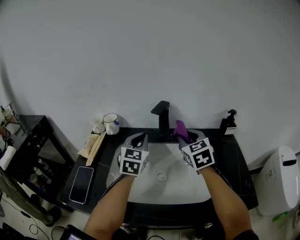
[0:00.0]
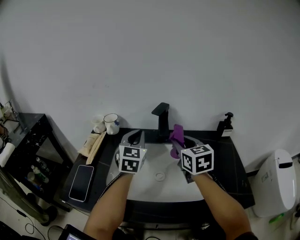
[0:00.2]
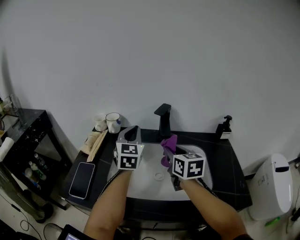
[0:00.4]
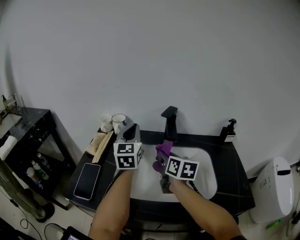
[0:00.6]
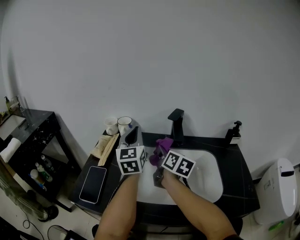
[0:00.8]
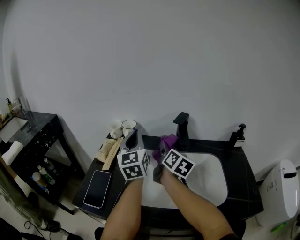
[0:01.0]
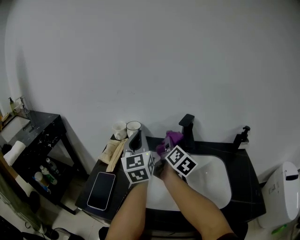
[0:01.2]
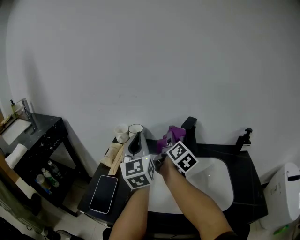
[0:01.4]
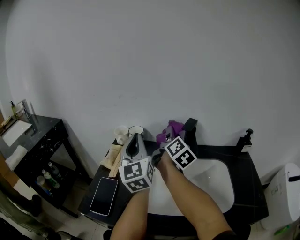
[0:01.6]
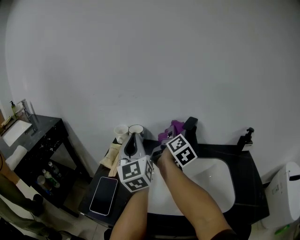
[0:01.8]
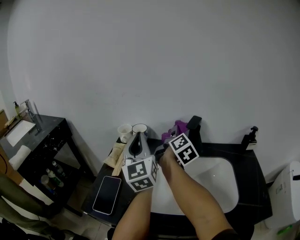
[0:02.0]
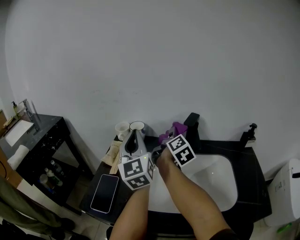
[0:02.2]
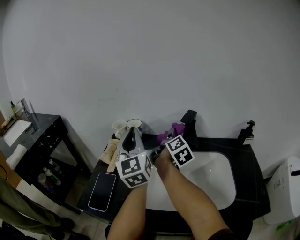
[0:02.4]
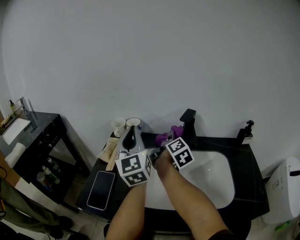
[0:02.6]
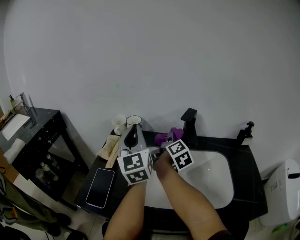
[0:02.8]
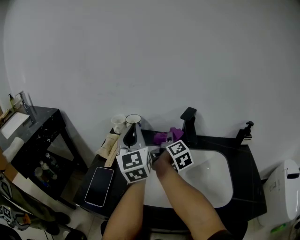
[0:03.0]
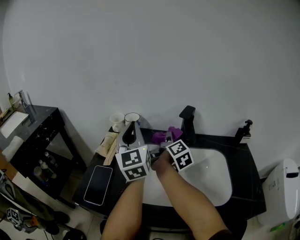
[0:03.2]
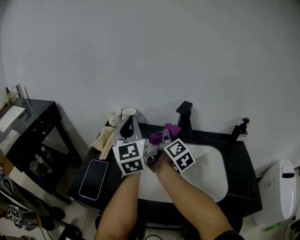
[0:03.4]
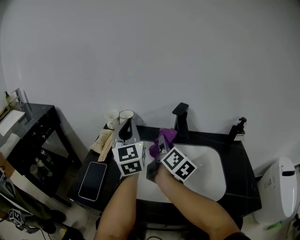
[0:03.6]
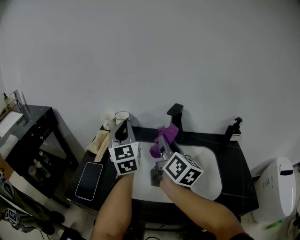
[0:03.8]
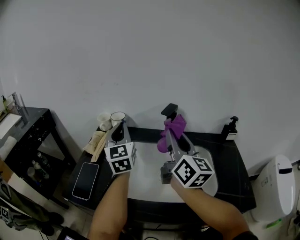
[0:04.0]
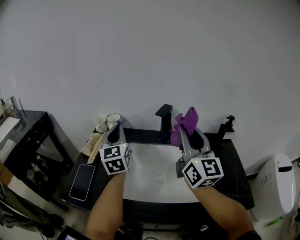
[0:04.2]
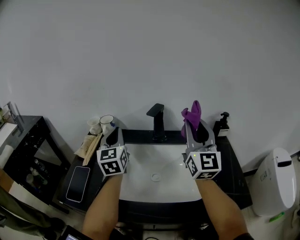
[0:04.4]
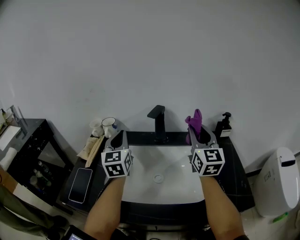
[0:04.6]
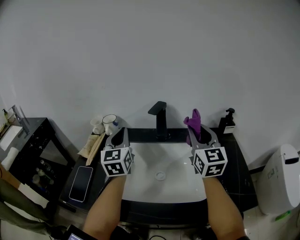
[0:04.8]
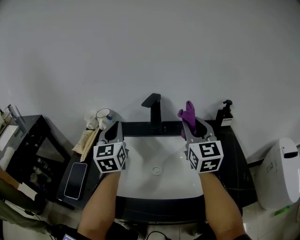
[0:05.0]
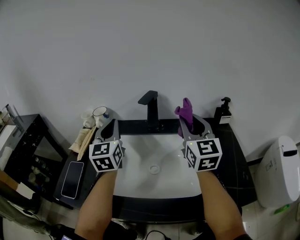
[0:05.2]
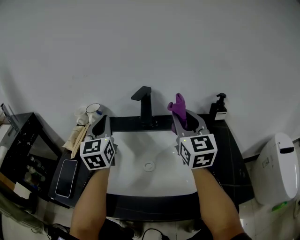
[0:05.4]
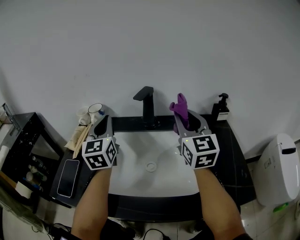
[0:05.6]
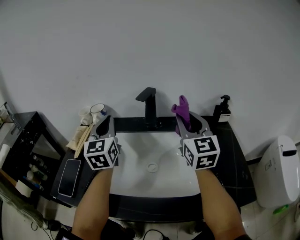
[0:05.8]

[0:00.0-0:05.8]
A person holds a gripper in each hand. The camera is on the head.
0:00.0 to 0:01.4: The left gripper shifts about 20 cm to the left and upward, and turns by approximately 40 degrees; the right gripper shifts roughly 15 cm to the left and forward, and rotates around the line of its fingers by about 70 degrees, clockwise from behind.
0:01.4 to 0:02.8: The right gripper is displaced downward by roughly 5 cm.
0:02.8 to 0:04.4: The left gripper moves to the right, some 5 cm. The right gripper shifts about 25 cm upward, backward and to the right, and twists roughly 70 degrees counterclockwise, seen from behind.
0:04.4 to 0:05.8: The right gripper travels downward by about 5 cm.

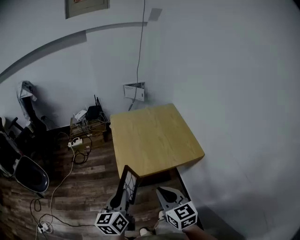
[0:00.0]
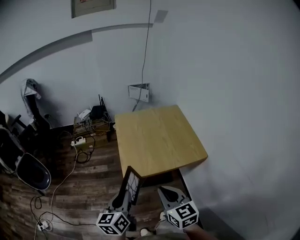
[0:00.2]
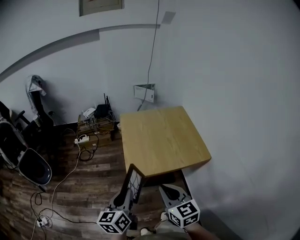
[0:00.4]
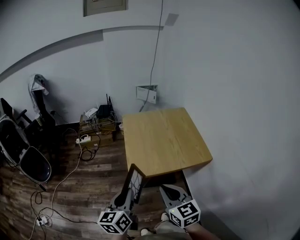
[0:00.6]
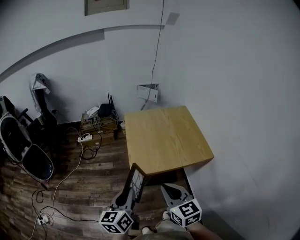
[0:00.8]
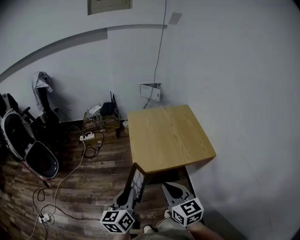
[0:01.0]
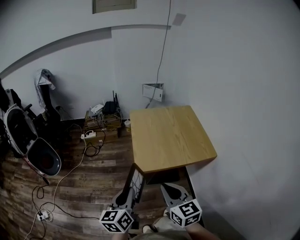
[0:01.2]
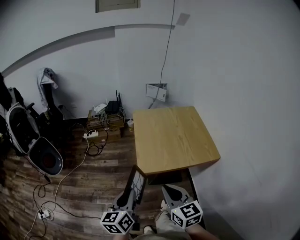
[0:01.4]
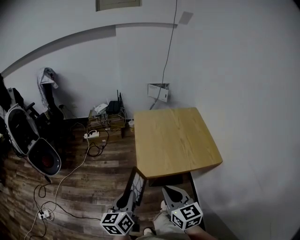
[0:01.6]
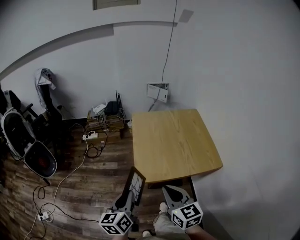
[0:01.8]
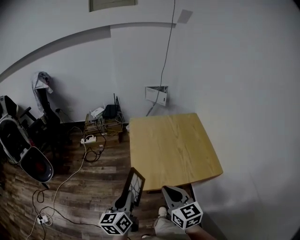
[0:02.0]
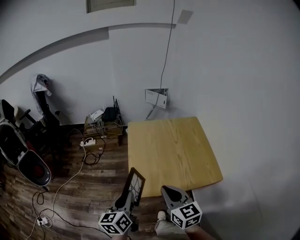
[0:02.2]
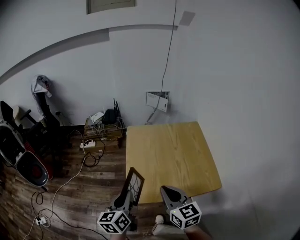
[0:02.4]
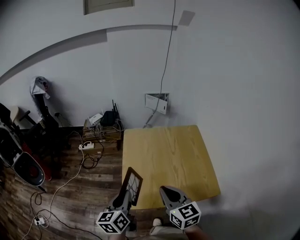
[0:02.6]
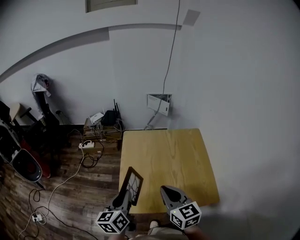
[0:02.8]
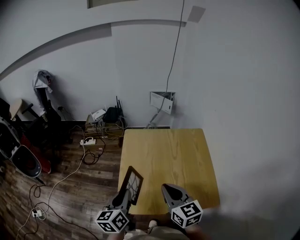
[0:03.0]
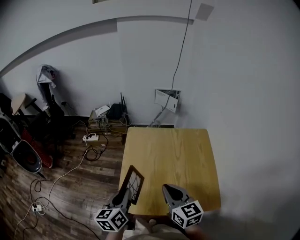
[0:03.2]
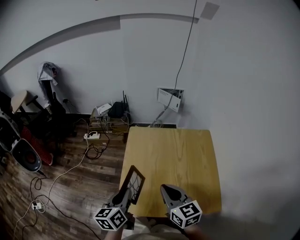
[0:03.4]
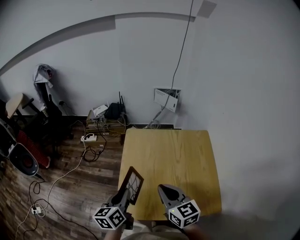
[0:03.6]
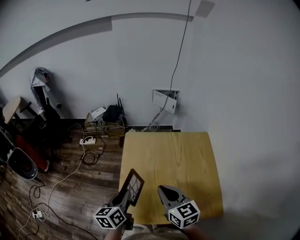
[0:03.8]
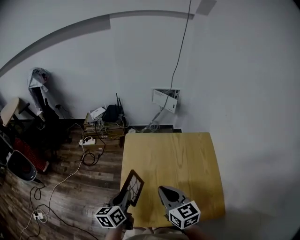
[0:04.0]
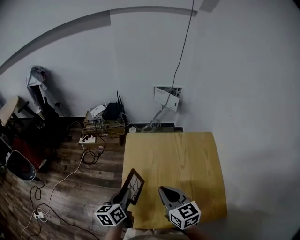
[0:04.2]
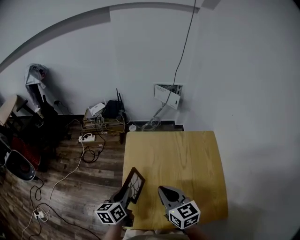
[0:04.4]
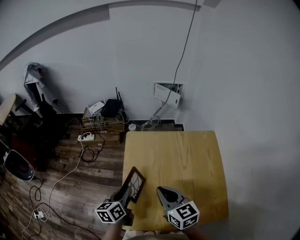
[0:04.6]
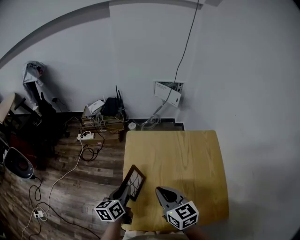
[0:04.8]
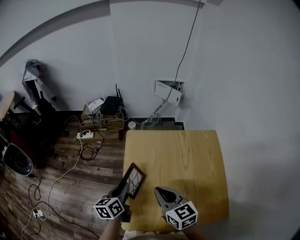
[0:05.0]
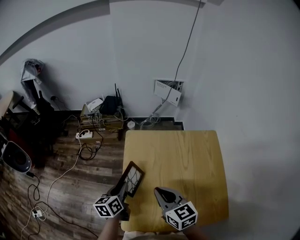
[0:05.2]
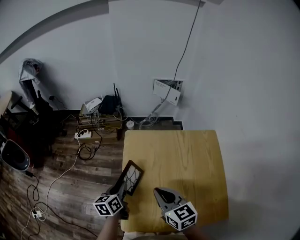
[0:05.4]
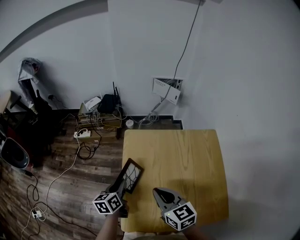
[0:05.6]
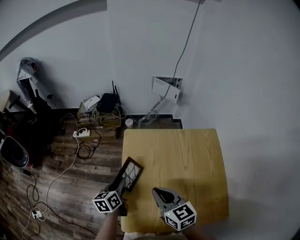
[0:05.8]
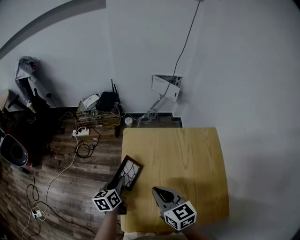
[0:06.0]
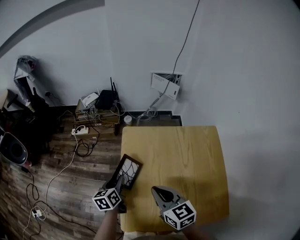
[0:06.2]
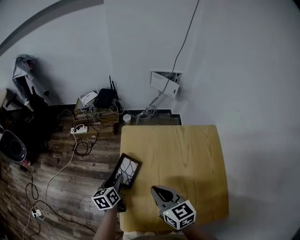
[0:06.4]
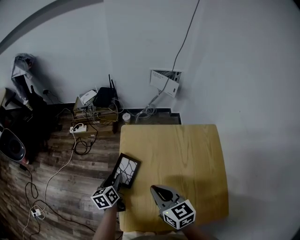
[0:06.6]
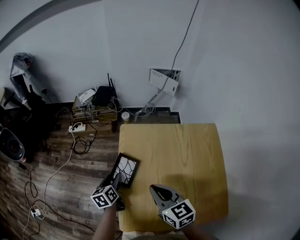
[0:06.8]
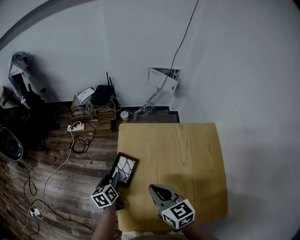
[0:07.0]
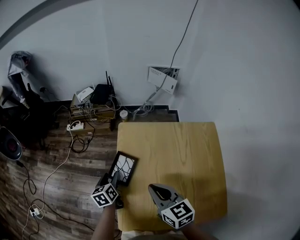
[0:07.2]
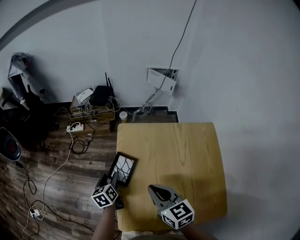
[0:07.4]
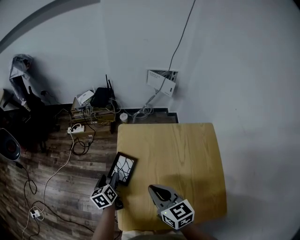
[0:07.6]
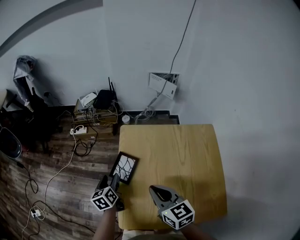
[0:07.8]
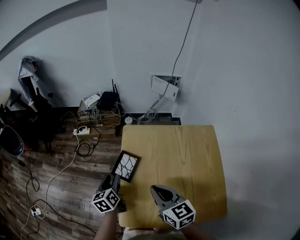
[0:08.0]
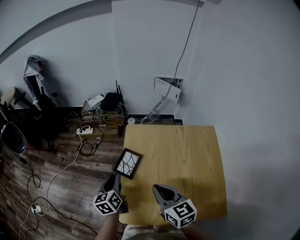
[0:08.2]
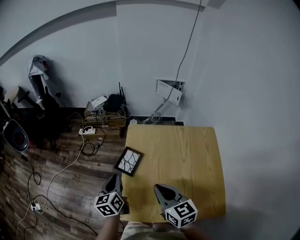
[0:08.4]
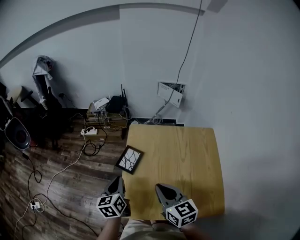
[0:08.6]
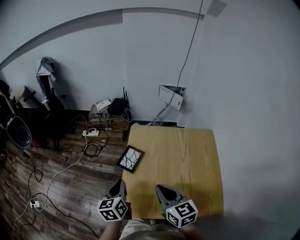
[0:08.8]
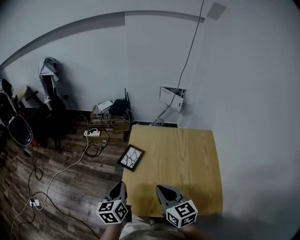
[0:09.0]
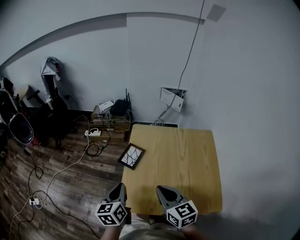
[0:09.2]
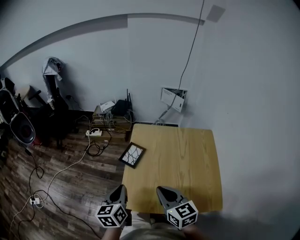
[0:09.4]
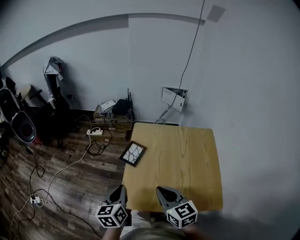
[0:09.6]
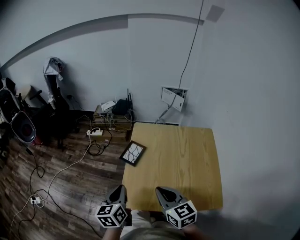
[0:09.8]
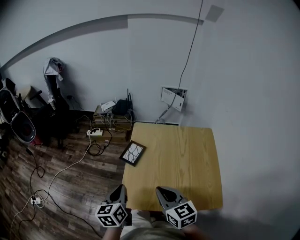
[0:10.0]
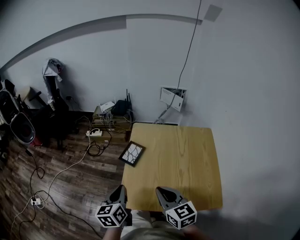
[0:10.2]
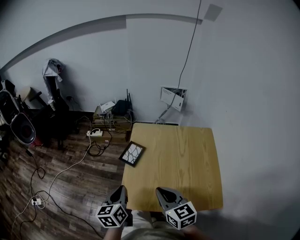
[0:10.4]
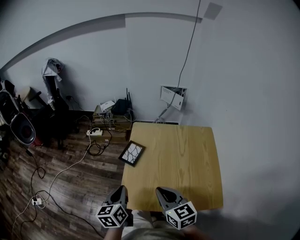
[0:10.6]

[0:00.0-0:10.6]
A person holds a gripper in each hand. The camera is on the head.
0:00.0 to 0:01.6: The grippers both shift to the left by about 10 cm.
0:01.6 to 0:03.0: The grippers both shift forward and to the right by approximately 30 cm.
0:03.0 to 0:04.6: Both grippers move forward and downward, approximately 15 cm.
0:04.6 to 0:06.0: The left gripper goes approximately 10 cm forward and downward.
0:06.0 to 0:07.6: The left gripper ends up about 5 cm from where it was, and opens.
0:07.6 to 0:09.0: The left gripper moves backward and upward, about 25 cm, and closes up, while the right gripper moves backward, some 10 cm.
0:09.0 to 0:10.6: The left gripper shifts some 5 cm backward.

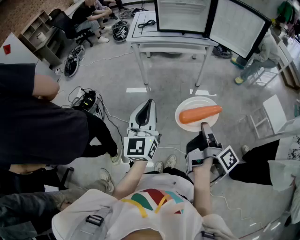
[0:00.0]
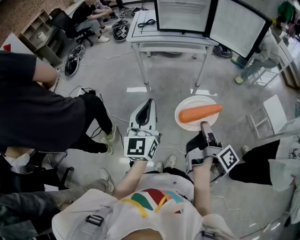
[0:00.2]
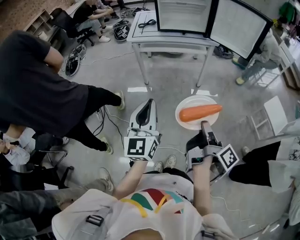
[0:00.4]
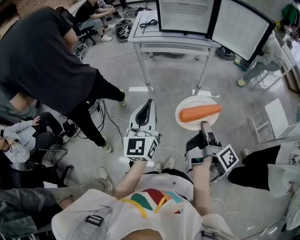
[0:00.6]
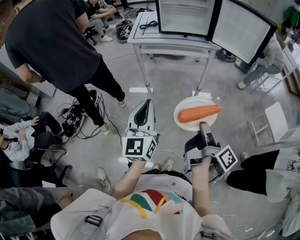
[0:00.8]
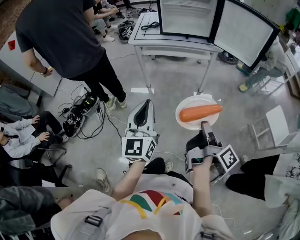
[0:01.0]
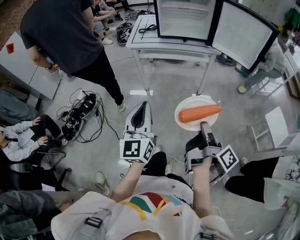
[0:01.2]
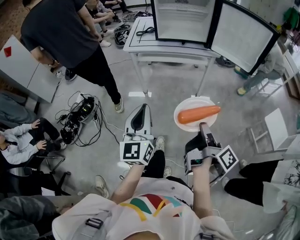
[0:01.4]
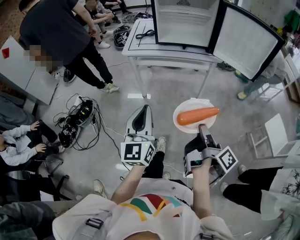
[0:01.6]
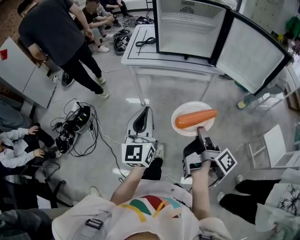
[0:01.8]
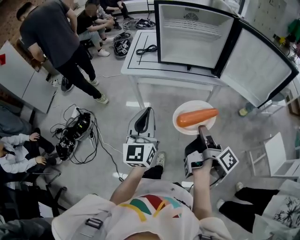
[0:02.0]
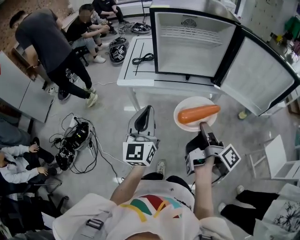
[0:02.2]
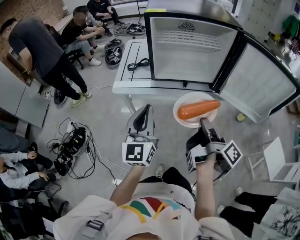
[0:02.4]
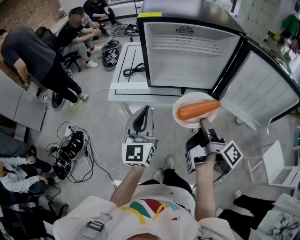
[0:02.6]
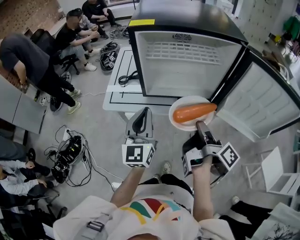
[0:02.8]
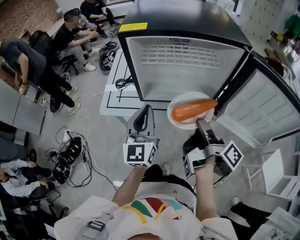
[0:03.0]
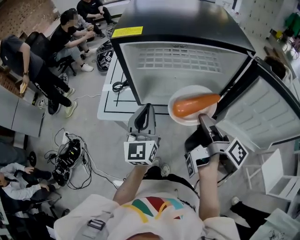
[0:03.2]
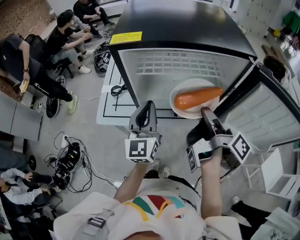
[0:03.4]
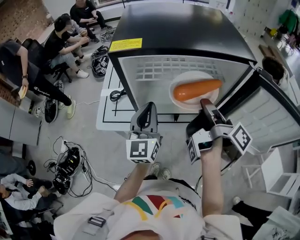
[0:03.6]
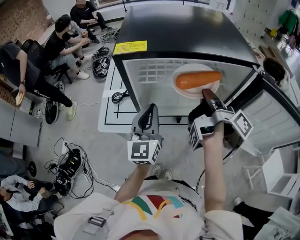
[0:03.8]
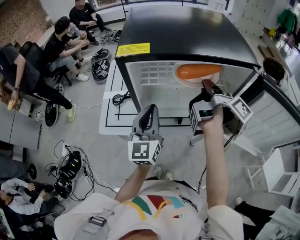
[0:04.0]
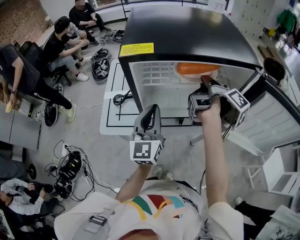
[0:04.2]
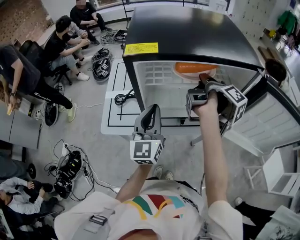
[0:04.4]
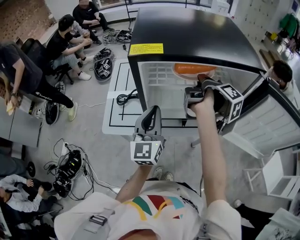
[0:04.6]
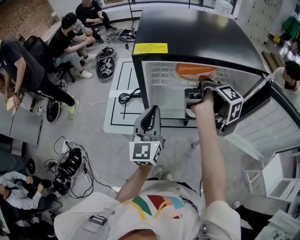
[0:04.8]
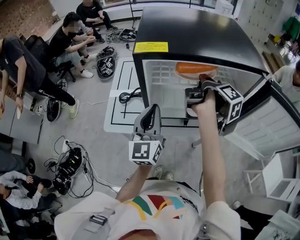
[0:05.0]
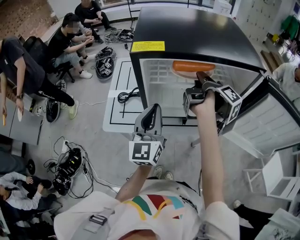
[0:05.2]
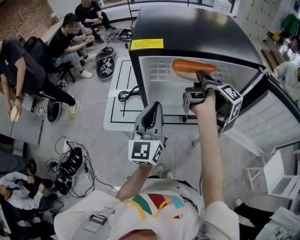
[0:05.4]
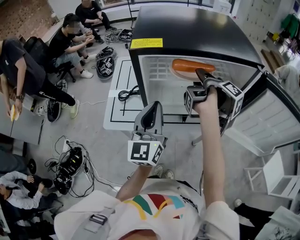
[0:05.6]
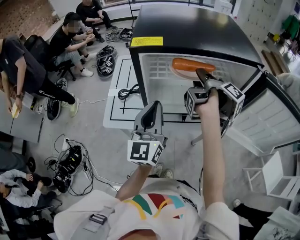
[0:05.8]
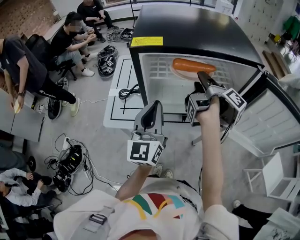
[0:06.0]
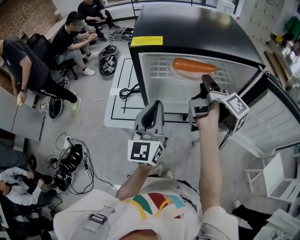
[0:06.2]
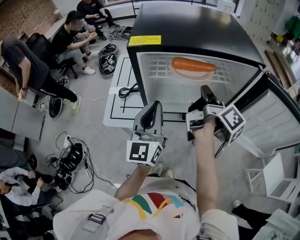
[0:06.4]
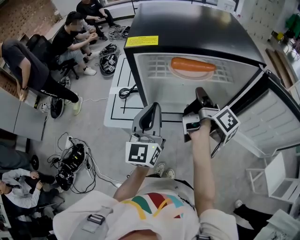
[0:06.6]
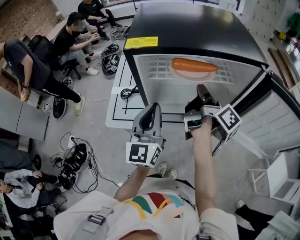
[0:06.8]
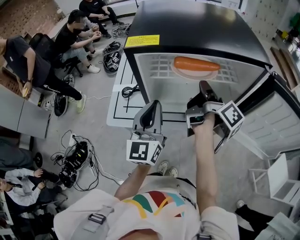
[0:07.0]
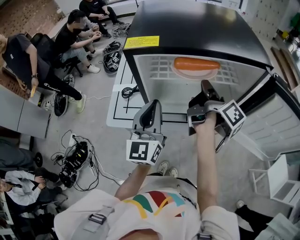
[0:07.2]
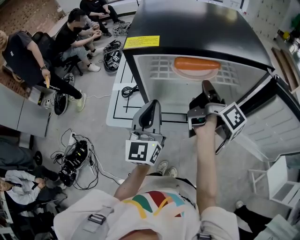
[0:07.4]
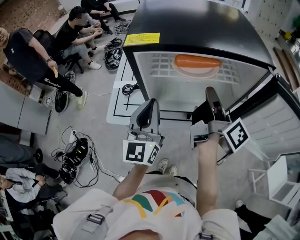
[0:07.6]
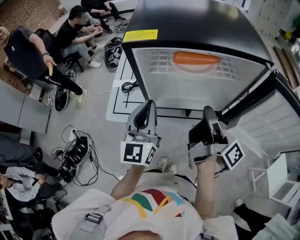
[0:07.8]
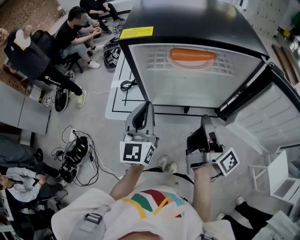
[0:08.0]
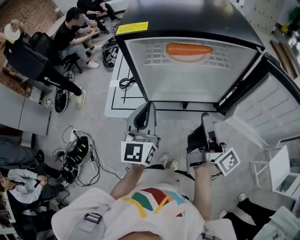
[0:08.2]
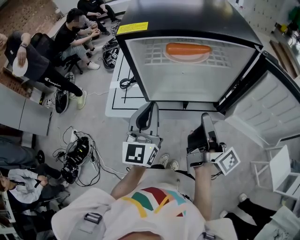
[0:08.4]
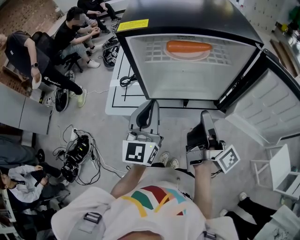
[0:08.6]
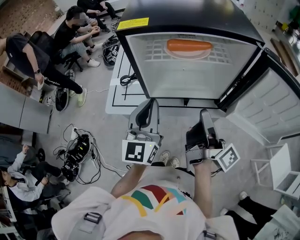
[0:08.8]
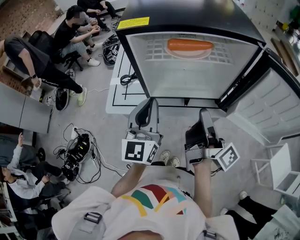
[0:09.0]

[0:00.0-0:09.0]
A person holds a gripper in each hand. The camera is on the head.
0:00.0 to 0:01.6: The left gripper changes place by roughly 15 cm.
0:01.6 to 0:03.0: The left gripper shifts by roughly 50 cm.
0:03.0 to 0:04.4: The left gripper shifts by some 10 cm.
0:04.4 to 0:06.0: The left gripper ends up roughly 5 cm from where it was.
0:07.6 to 0:09.0: The left gripper moves some 5 cm.
